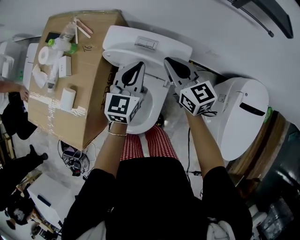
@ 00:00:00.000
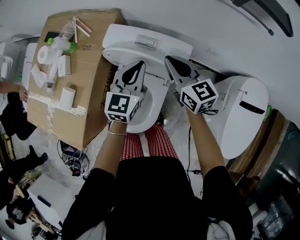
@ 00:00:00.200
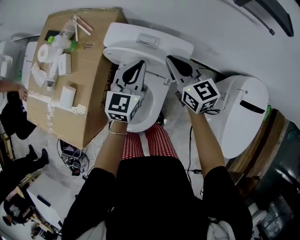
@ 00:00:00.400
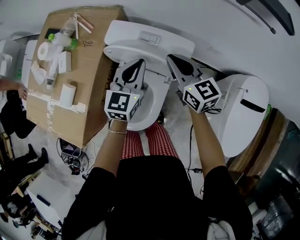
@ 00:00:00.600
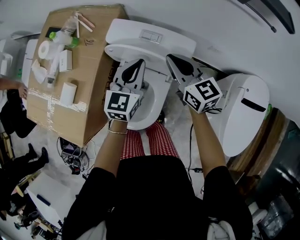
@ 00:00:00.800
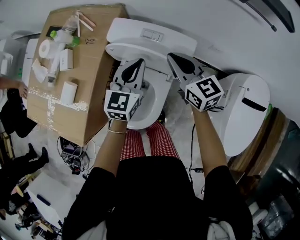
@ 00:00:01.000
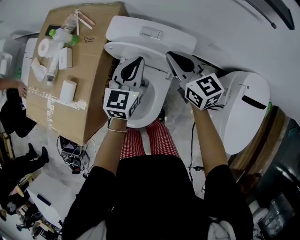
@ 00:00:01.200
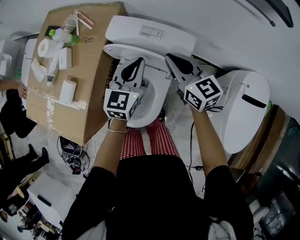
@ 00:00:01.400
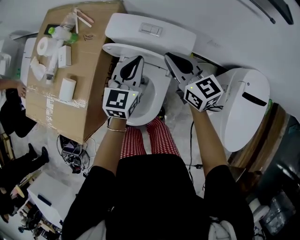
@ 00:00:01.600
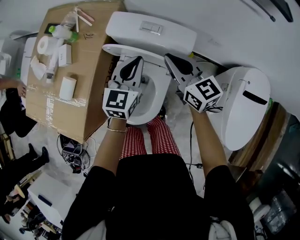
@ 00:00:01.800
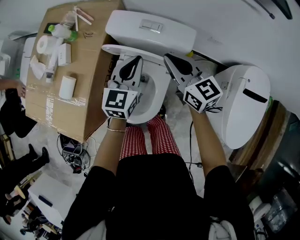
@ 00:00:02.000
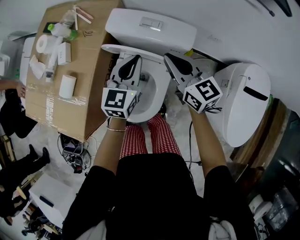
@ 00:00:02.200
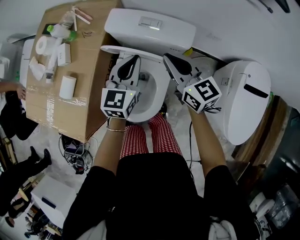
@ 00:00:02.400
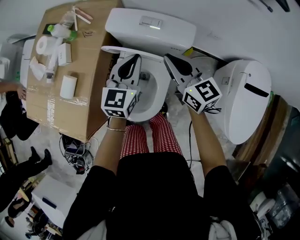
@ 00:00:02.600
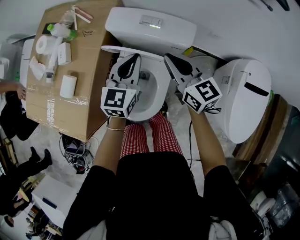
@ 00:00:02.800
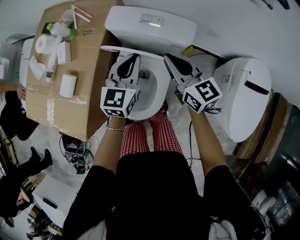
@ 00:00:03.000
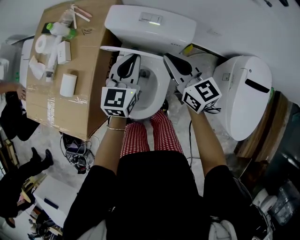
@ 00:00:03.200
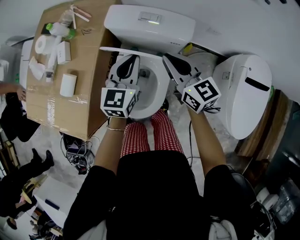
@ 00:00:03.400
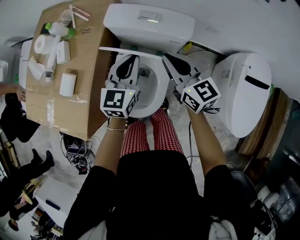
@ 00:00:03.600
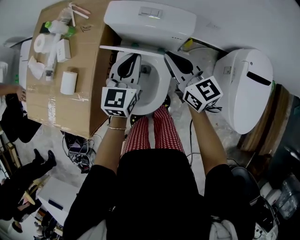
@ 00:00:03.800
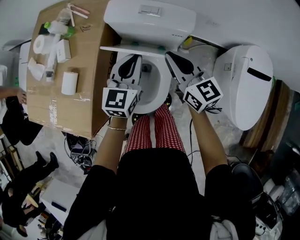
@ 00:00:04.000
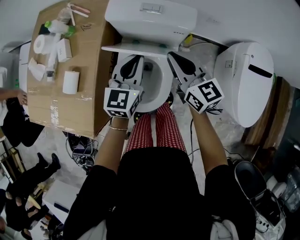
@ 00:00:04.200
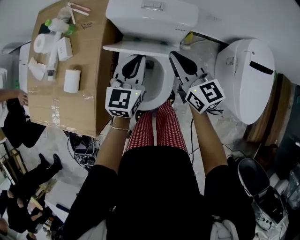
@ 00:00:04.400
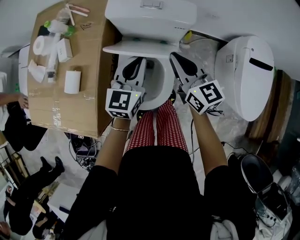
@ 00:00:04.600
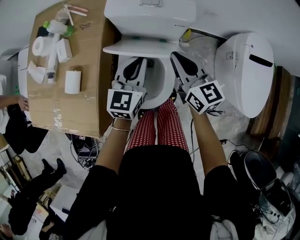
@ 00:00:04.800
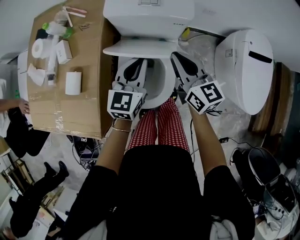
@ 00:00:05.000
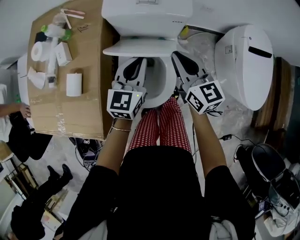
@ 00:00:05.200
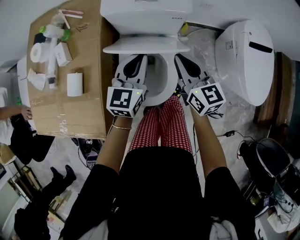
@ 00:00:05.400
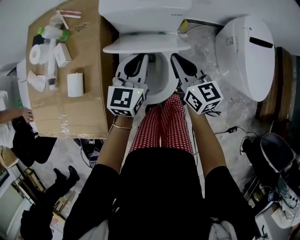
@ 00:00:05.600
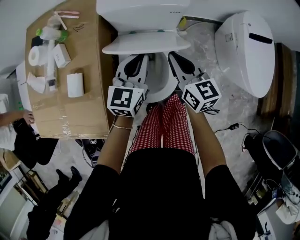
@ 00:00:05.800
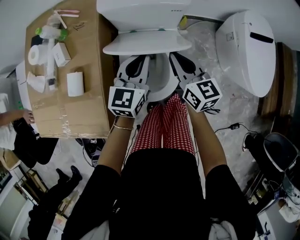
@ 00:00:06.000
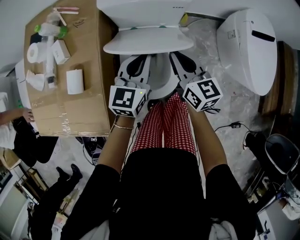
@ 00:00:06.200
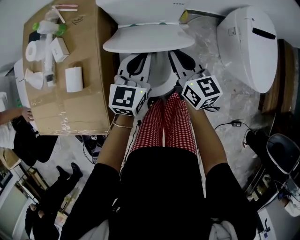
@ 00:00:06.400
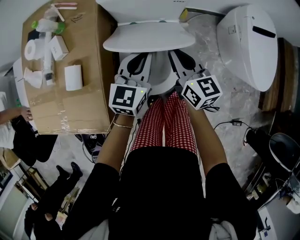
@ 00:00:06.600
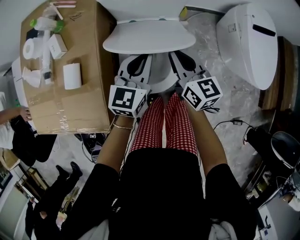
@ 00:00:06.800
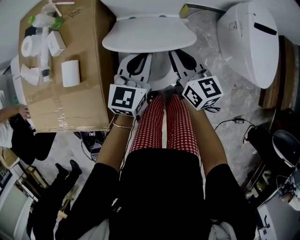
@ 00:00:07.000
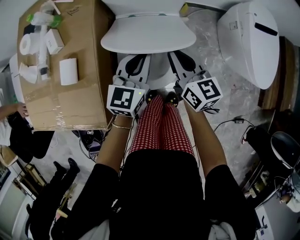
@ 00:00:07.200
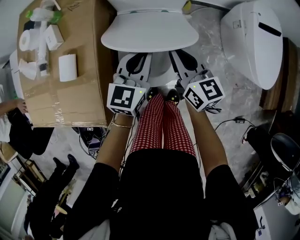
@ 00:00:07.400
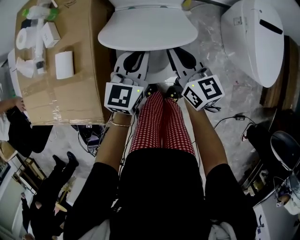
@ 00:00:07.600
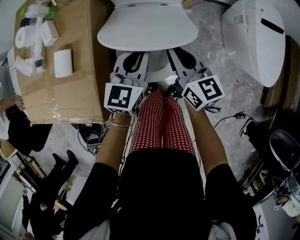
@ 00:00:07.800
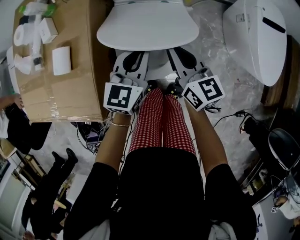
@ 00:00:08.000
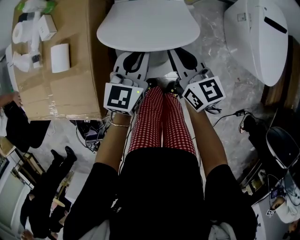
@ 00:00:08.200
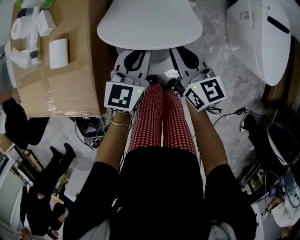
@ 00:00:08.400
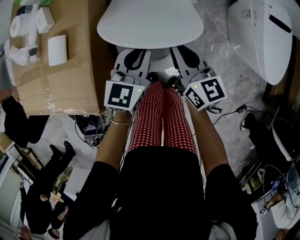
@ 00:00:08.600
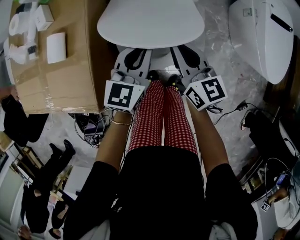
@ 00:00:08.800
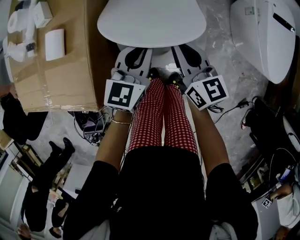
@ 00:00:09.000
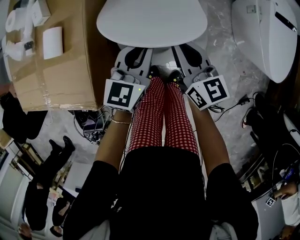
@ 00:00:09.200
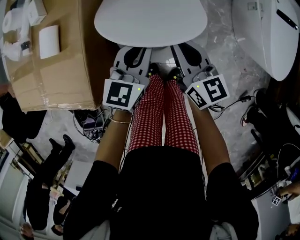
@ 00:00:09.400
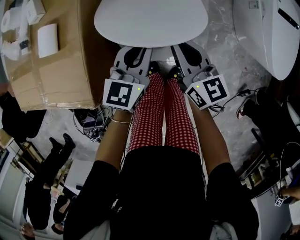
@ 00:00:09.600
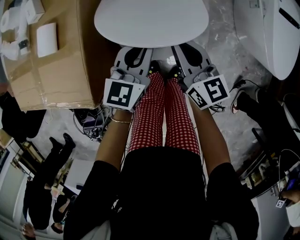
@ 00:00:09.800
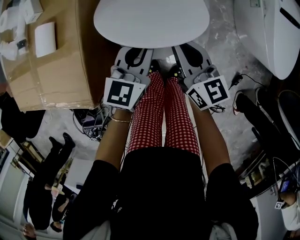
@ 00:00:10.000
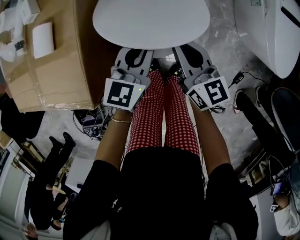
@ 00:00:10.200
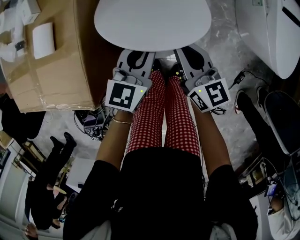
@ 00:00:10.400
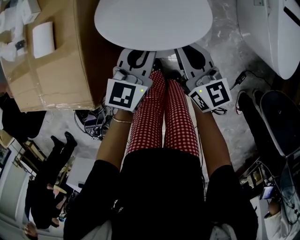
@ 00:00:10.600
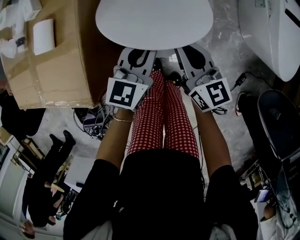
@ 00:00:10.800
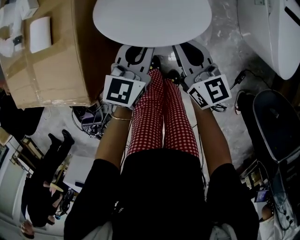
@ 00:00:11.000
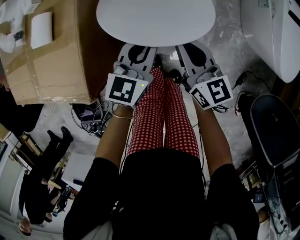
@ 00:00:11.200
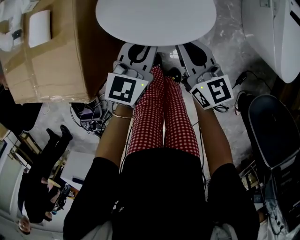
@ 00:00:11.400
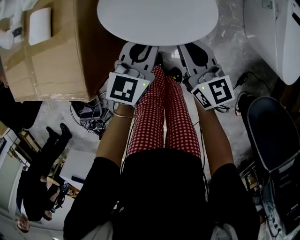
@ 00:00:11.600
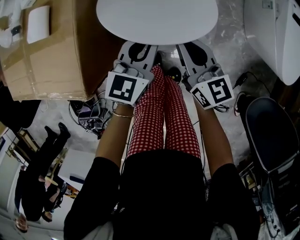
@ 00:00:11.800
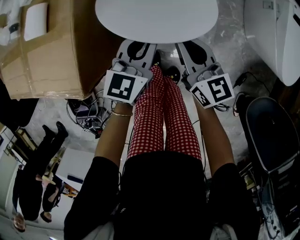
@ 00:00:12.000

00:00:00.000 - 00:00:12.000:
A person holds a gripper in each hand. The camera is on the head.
00:00:00.000 - 00:00:01.600: The grippers stay close to where they were, moving slightly.
00:00:01.600 - 00:00:03.000: The grippers move only a little.
00:00:03.000 - 00:00:04.400: Both grippers move backward, some 5 cm.
00:00:04.400 - 00:00:06.000: The left gripper moves approximately 5 cm; the right gripper heads backward, covering about 5 cm.
00:00:06.000 - 00:00:07.600: The two grippers go approximately 5 cm backward.
00:00:07.600 - 00:00:09.000: Both grippers travel together backward, approximately 5 cm.
00:00:09.000 - 00:00:10.400: The left gripper changes place by some 5 cm. Meanwhile the right gripper changes place by some 5 cm.
00:00:10.400 - 00:00:12.000: The grippers move only a little.

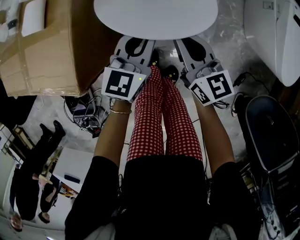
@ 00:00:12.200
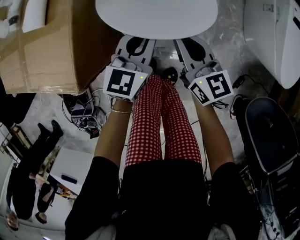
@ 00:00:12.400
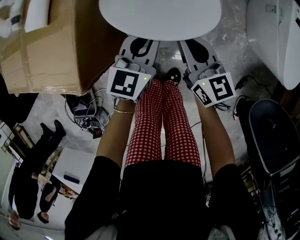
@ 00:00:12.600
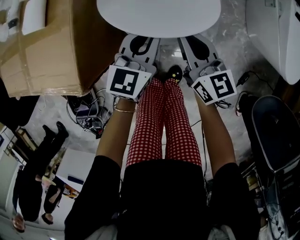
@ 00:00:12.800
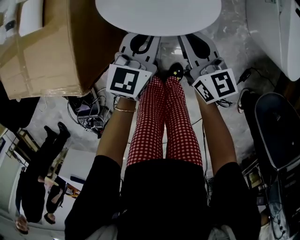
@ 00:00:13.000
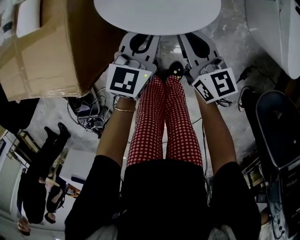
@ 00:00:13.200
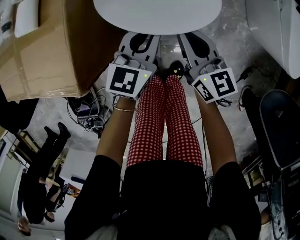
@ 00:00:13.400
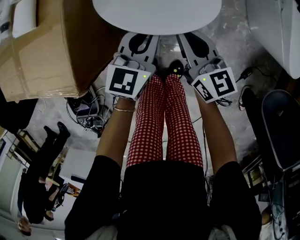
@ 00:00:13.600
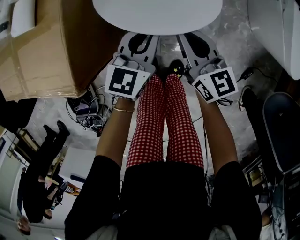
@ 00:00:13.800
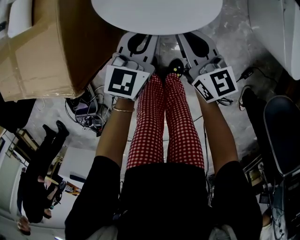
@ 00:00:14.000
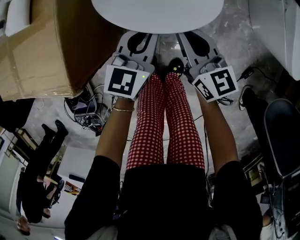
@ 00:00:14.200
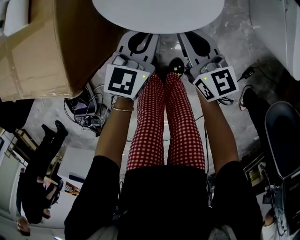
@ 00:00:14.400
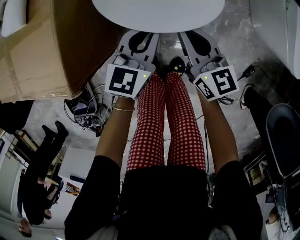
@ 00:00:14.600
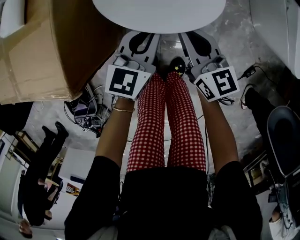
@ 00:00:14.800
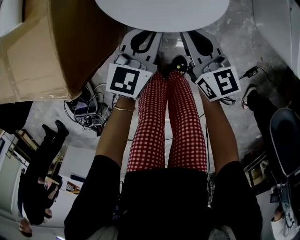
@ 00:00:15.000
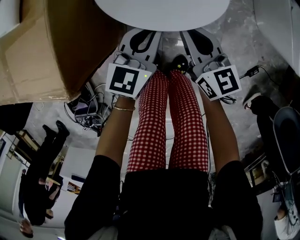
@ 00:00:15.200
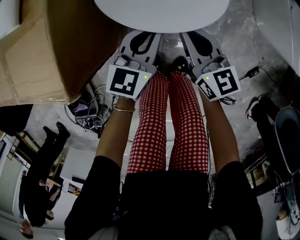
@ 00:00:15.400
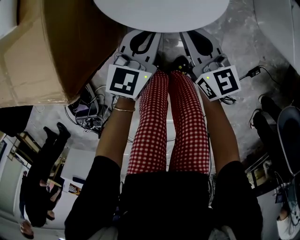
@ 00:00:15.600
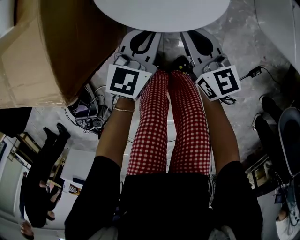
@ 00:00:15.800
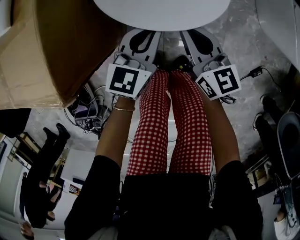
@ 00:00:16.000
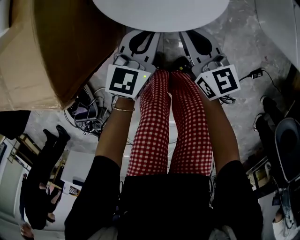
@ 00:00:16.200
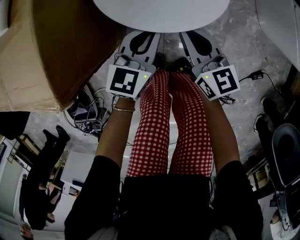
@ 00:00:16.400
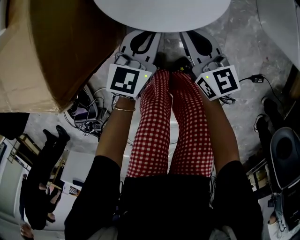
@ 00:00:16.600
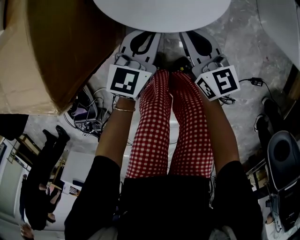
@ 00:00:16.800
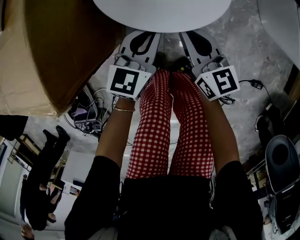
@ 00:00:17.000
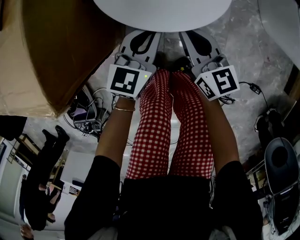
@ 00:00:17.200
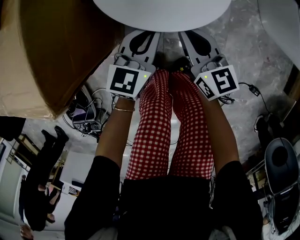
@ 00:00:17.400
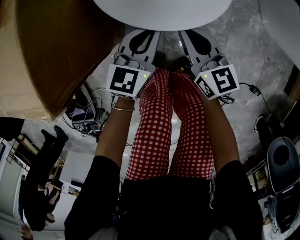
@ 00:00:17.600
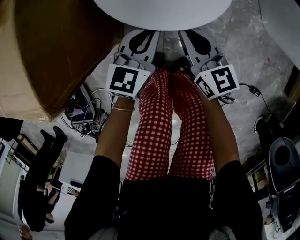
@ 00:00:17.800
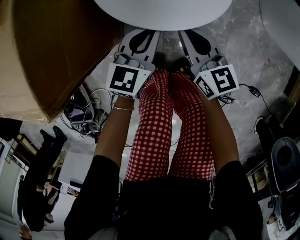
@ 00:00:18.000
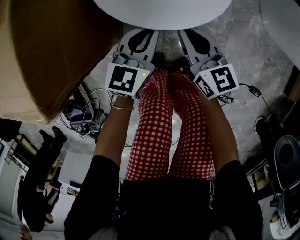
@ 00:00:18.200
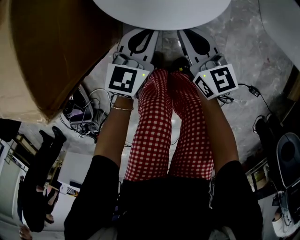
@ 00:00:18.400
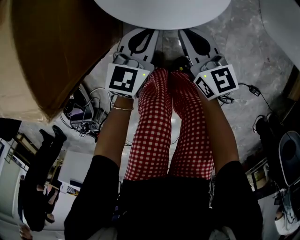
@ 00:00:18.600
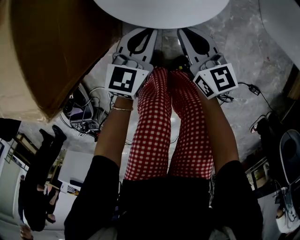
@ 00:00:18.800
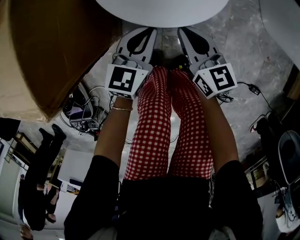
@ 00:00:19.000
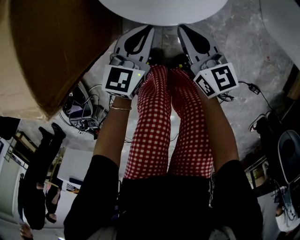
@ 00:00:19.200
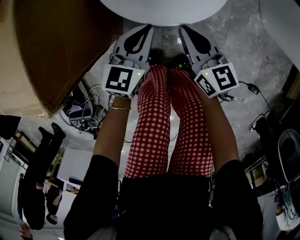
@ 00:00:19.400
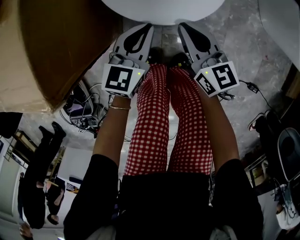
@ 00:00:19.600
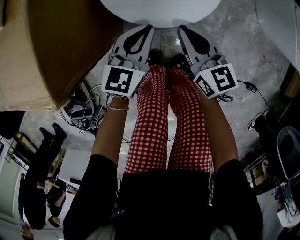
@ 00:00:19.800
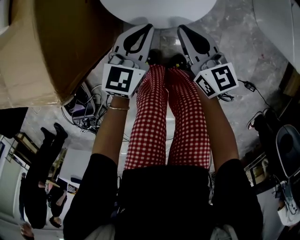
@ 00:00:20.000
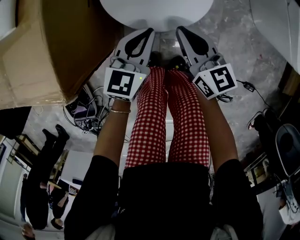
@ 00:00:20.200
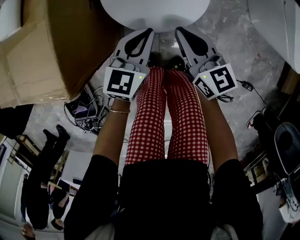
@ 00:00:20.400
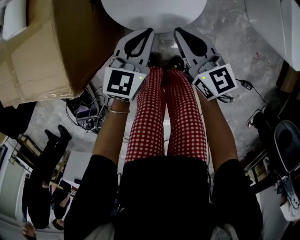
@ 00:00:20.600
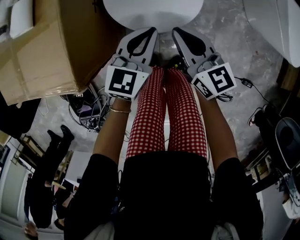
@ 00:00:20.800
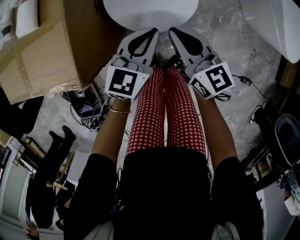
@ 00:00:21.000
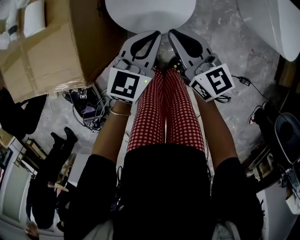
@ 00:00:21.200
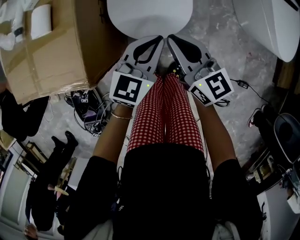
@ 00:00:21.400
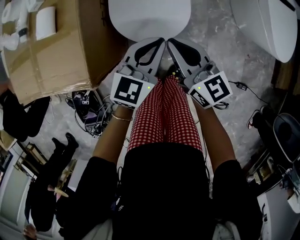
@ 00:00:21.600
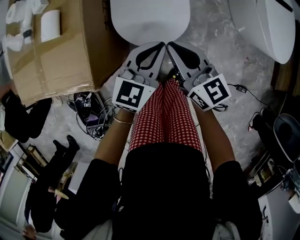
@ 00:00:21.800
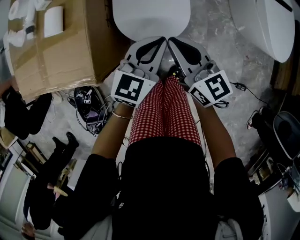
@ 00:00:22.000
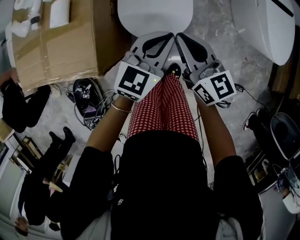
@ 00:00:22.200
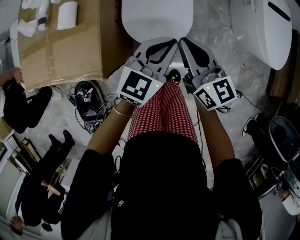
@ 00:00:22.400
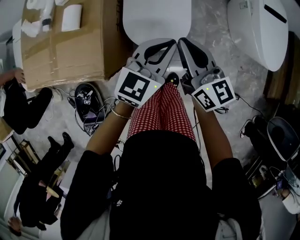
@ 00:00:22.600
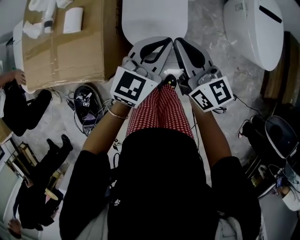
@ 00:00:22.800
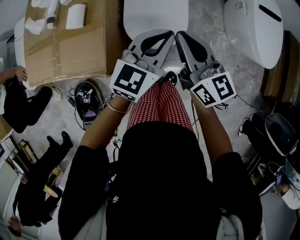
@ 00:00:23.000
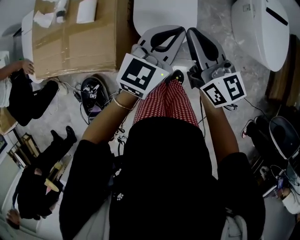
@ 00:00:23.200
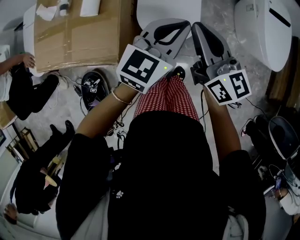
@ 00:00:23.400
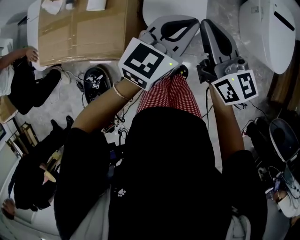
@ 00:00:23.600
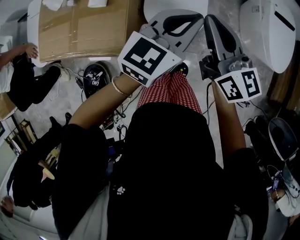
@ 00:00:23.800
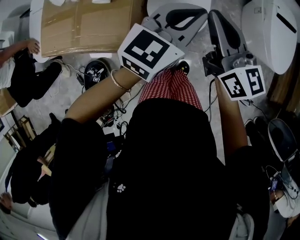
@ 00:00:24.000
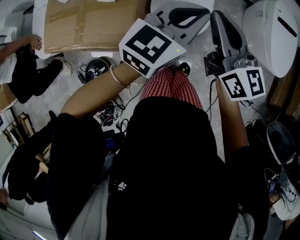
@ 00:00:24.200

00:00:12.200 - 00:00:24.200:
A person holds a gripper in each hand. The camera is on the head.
00:00:12.200 - 00:00:13.800: The grippers make only small movements.
00:00:13.800 - 00:00:15.200: Both grippers travel together downward, about 5 cm.
00:00:15.200 - 00:00:16.600: Both grippers travel together downward, roughly 5 cm.
00:00:16.600 - 00:00:19.800: The grippers stay close to where they were, moving slightly.
00:00:19.800 - 00:00:21.200: The grippers both shift upward by about 15 cm.
00:00:21.200 - 00:00:22.600: The grippers both shift upward by some 15 cm.
00:00:22.600 - 00:00:24.200: The two grippers go some 15 cm upward.
